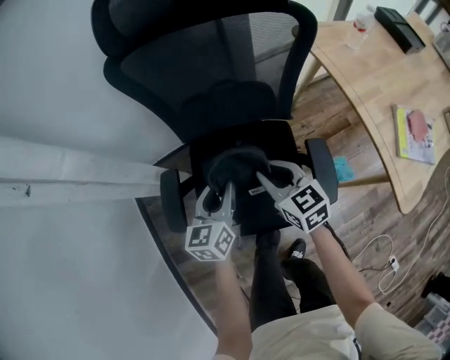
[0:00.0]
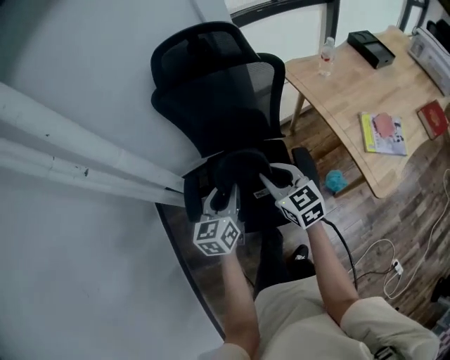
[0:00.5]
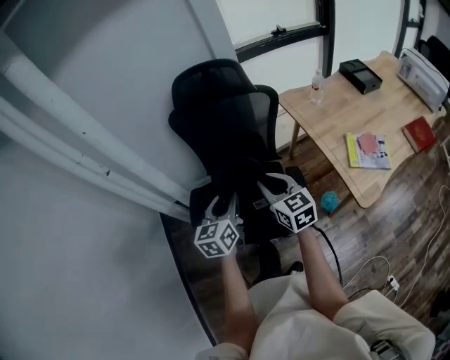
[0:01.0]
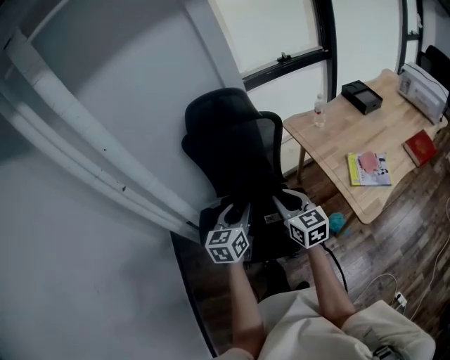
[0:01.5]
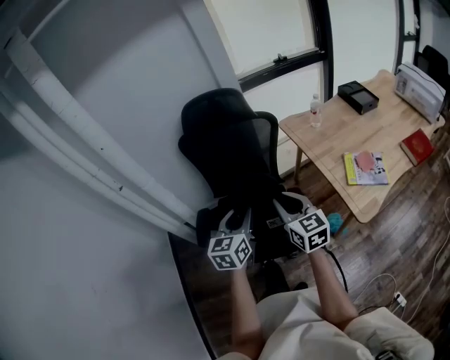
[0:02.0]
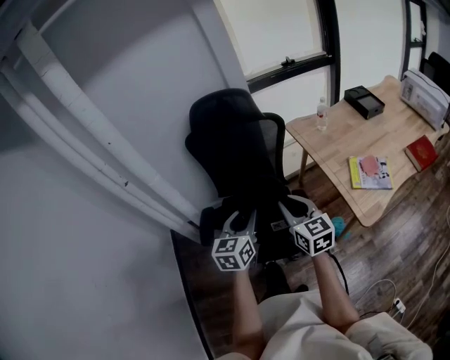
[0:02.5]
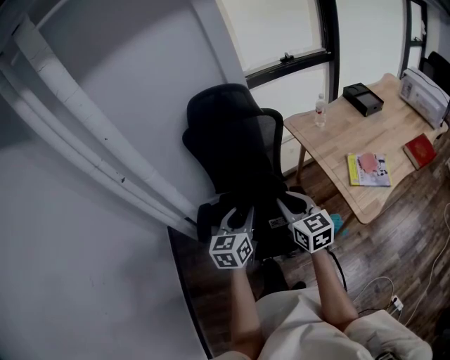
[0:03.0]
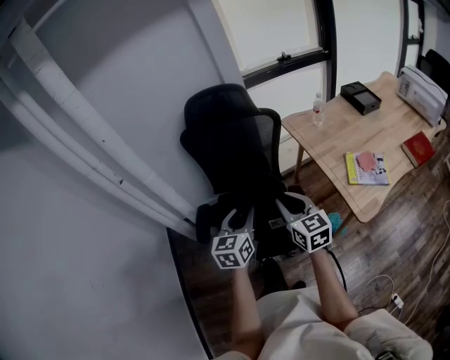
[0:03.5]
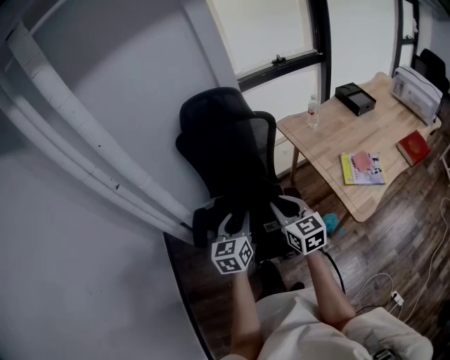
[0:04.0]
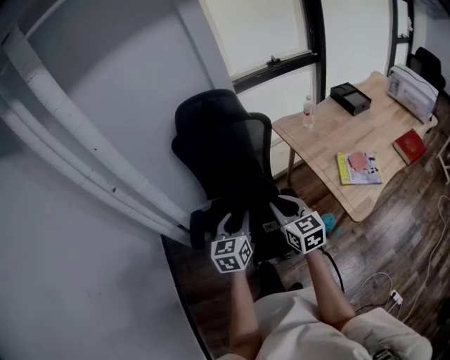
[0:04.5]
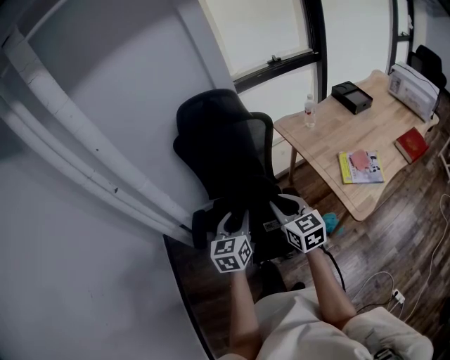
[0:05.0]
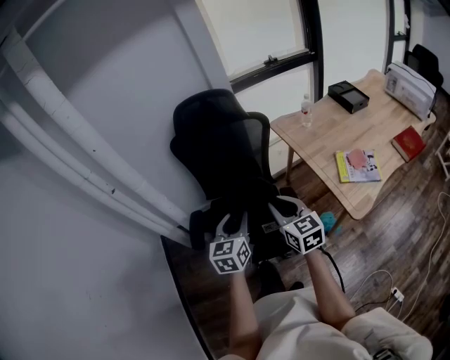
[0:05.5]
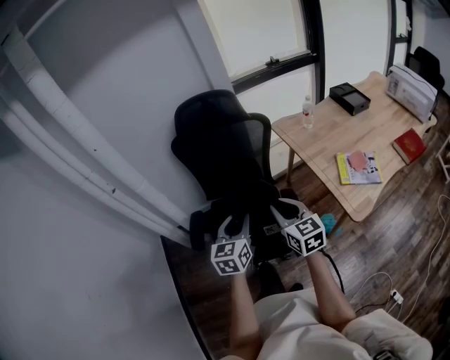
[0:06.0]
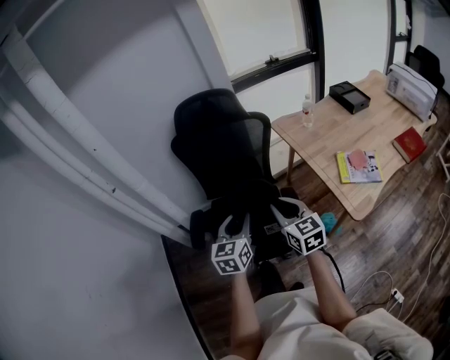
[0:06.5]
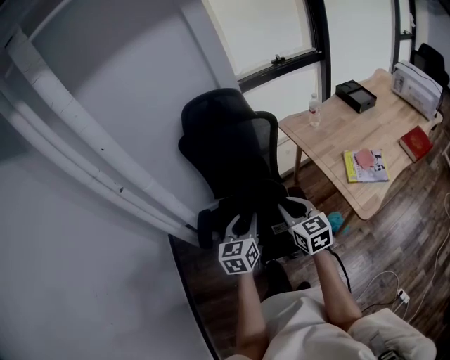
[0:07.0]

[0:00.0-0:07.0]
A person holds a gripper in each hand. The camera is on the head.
0:00.0 to 0:02.0: Both grippers travel together upward and backward, some 35 cm.
0:02.0 to 0:03.5: The grippers stay close to where they were, moving slightly.
0:03.5 to 0:05.0: Both grippers stay put.
0:05.0 to 0:07.0: There are only small adjustments of the grippers.

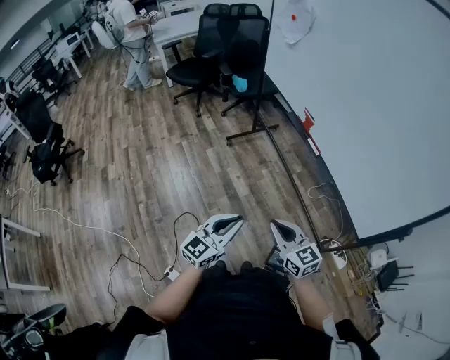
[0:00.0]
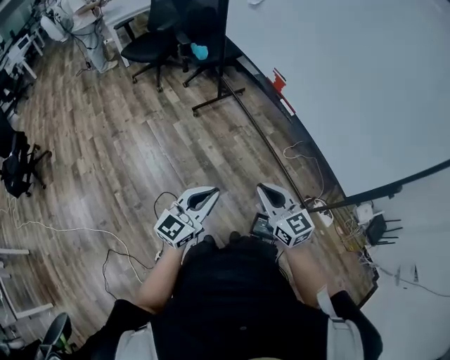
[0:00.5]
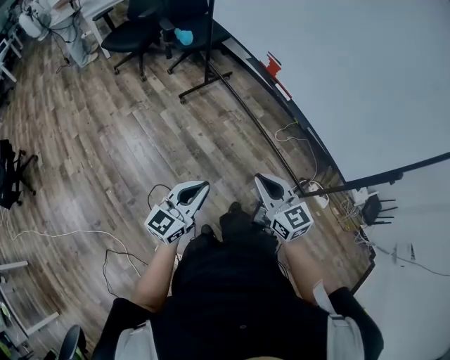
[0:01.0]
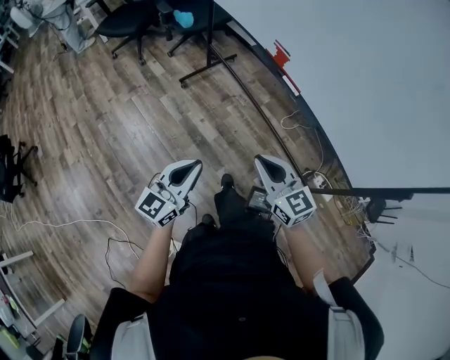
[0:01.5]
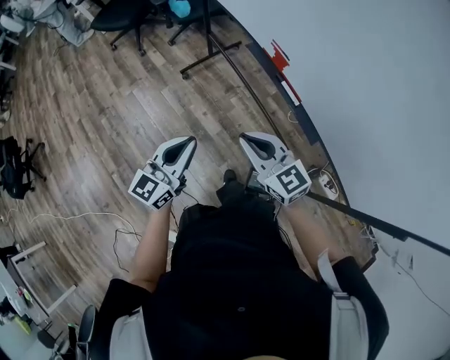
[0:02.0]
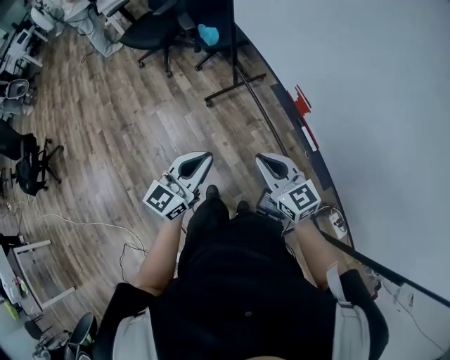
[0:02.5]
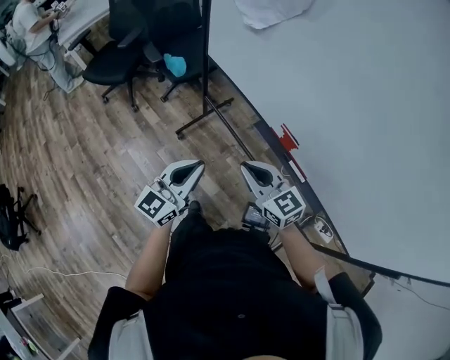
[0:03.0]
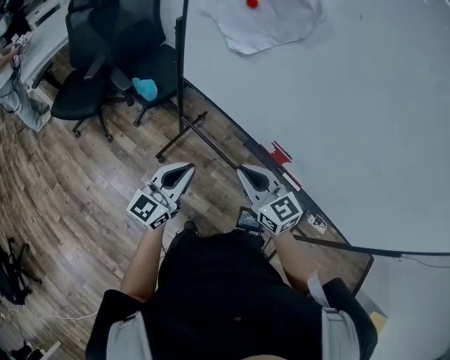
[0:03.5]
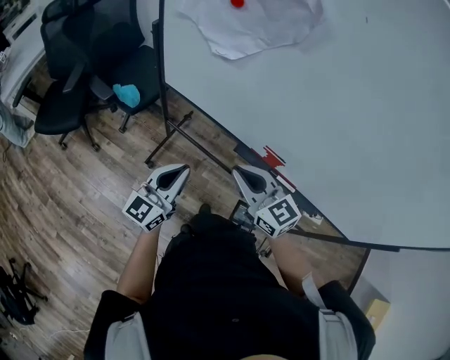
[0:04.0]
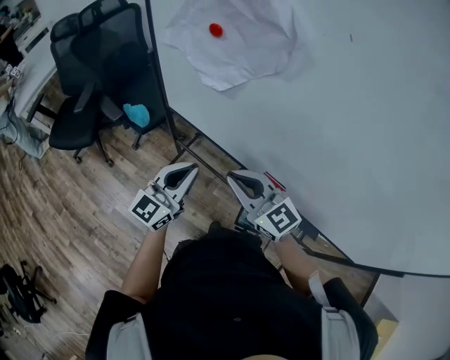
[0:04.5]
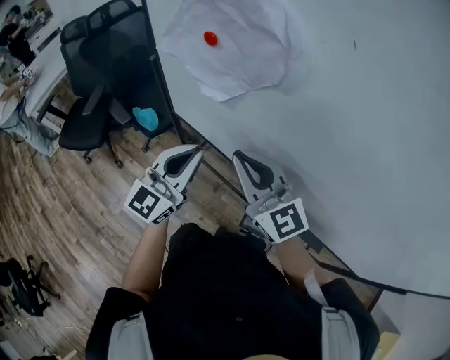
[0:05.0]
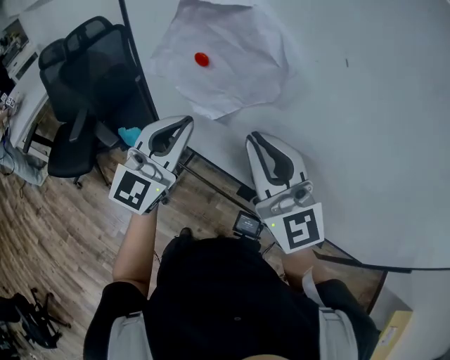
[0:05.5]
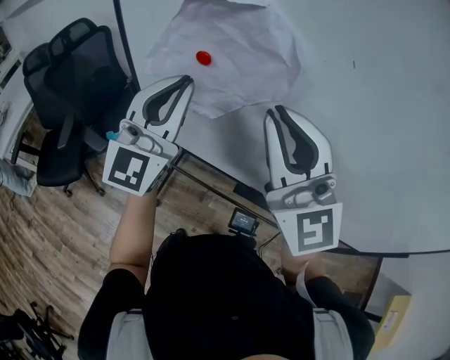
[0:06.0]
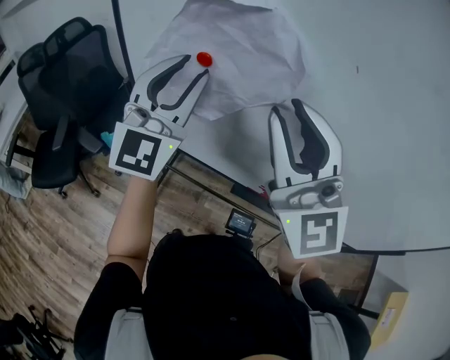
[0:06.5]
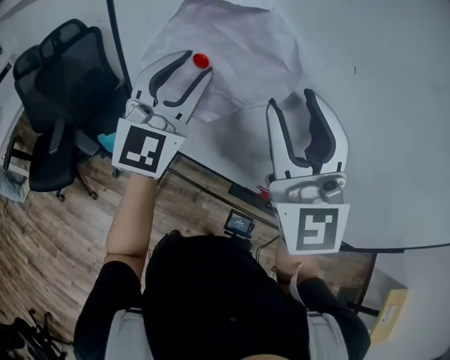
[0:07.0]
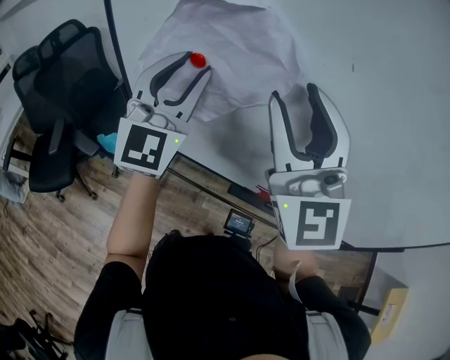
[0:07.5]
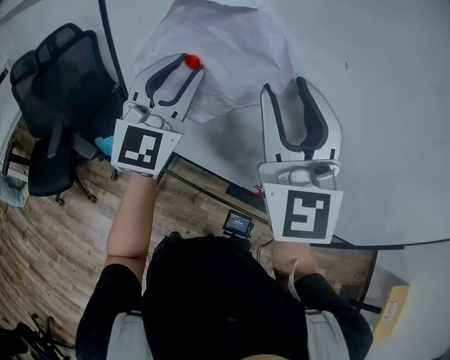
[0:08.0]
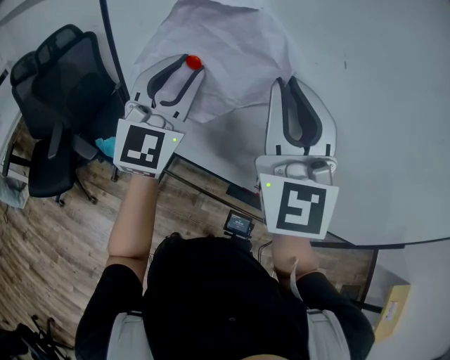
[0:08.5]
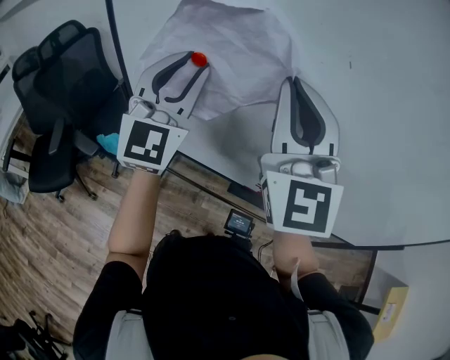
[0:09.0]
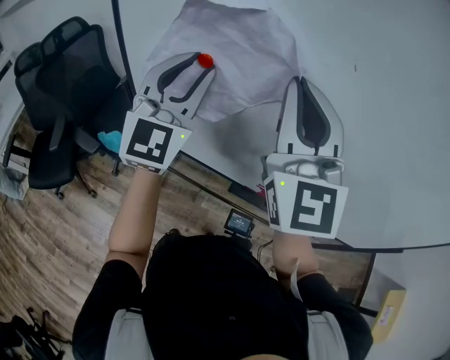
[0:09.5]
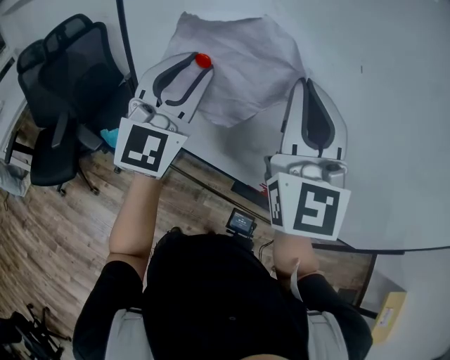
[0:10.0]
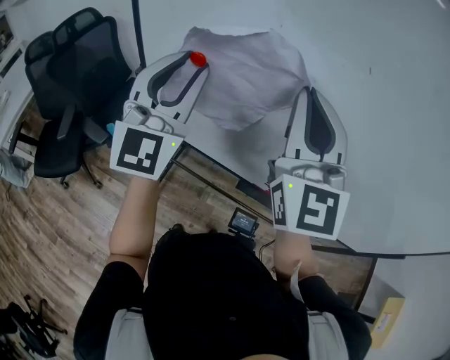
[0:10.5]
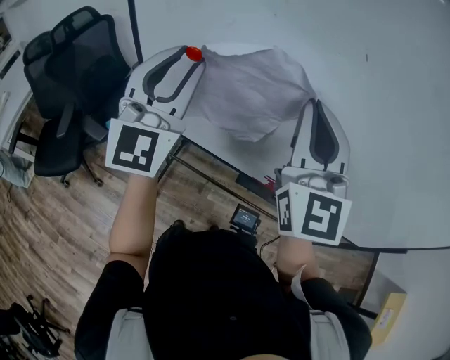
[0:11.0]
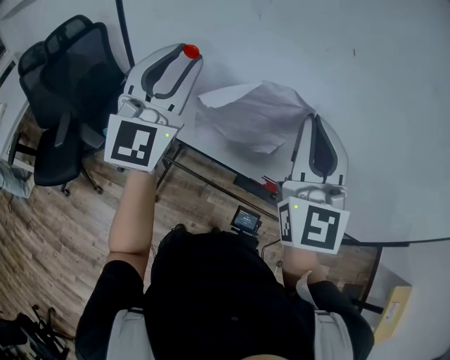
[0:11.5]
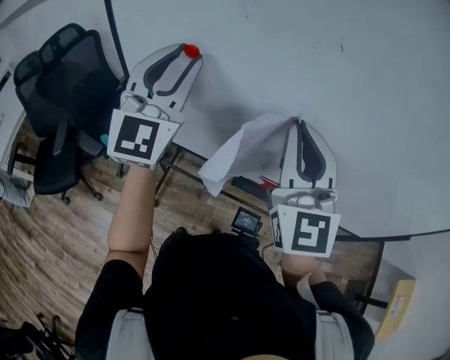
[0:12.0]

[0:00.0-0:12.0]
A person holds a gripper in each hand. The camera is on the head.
0:00.0 to 0:02.0: Both grippers move forward, some 30 cm.
0:02.0 to 0:04.0: The left gripper changes place by about 35 cm, and turns by roughly 30 degrees. The right gripper ends up about 30 cm from where it was, and changes its angle by approximately 30 degrees.
0:04.0 to 0:06.0: The right gripper goes roughly 30 cm upward, and tilts its fingers approximately 30 degrees upward. The left gripper moves upward and forward, about 35 cm, and turns by approximately 30 degrees.
0:06.0 to 0:08.0: The right gripper opens its fingers; the left gripper ends up roughly 5 cm from where it was, and opens its fingers.
0:08.0 to 0:10.0: The right gripper closes up.
0:10.0 to 0:12.0: The right gripper moves downward, some 5 cm.

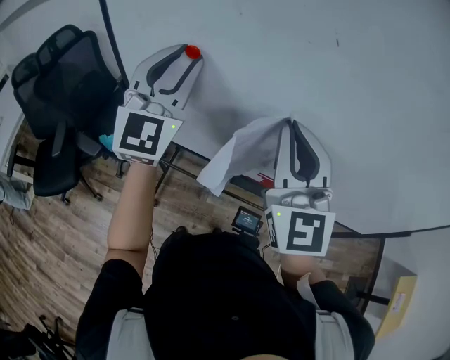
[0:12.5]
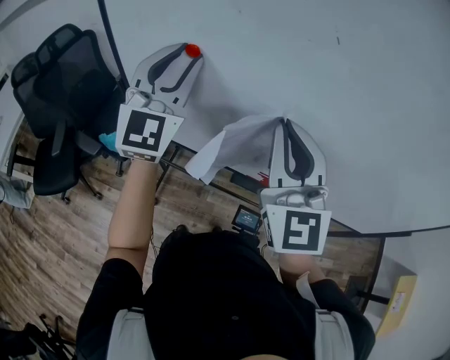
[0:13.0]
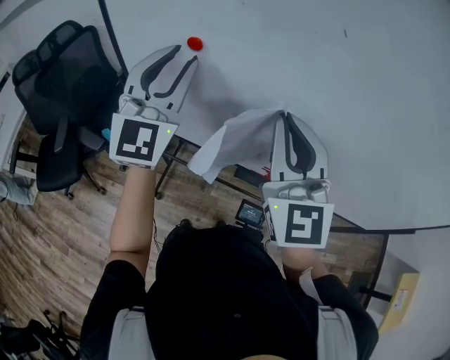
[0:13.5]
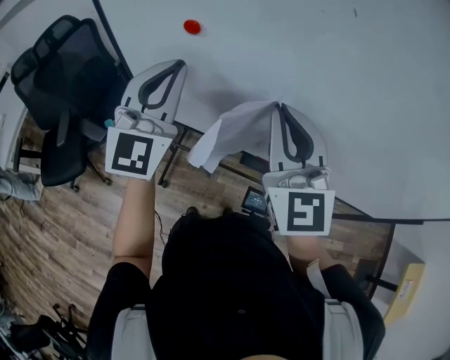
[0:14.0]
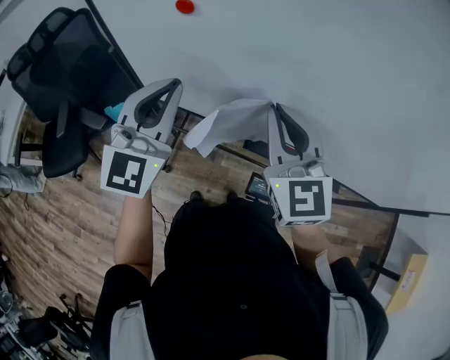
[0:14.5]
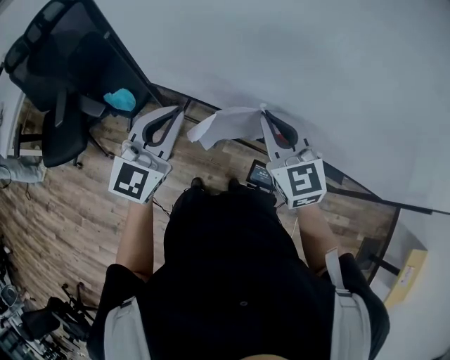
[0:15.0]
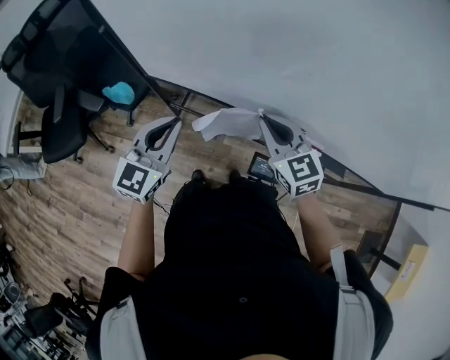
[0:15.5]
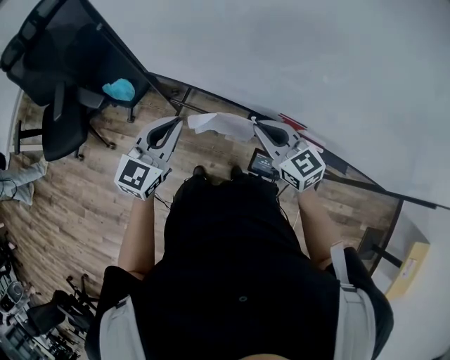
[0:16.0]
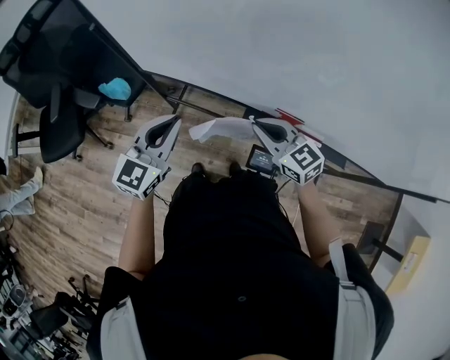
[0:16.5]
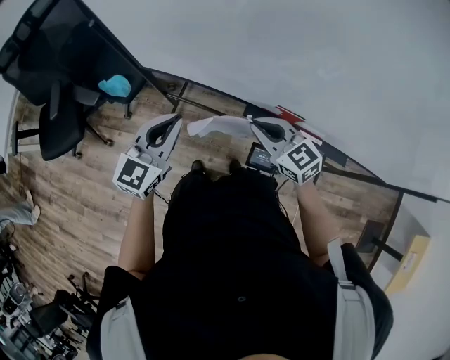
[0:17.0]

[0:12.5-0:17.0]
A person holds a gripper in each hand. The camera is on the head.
0:12.5 to 0:14.5: The left gripper is displaced downward and backward by about 10 cm, and closes up, while the right gripper goes roughly 10 cm downward.
0:14.5 to 0:17.0: The two grippers go roughly 20 cm downward. The left gripper changes its angle by roughly 30 degrees. The right gripper turns by approximately 40 degrees.

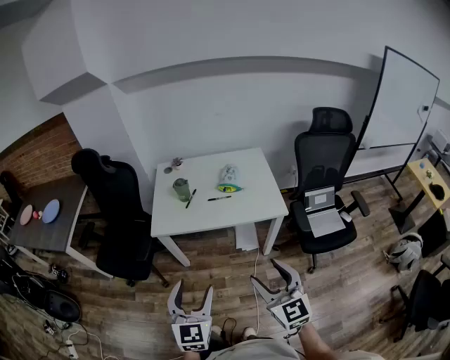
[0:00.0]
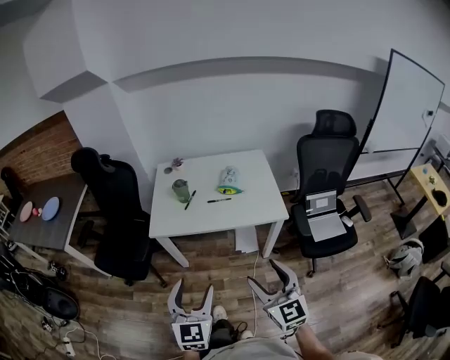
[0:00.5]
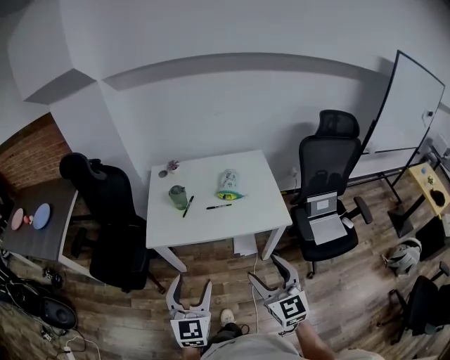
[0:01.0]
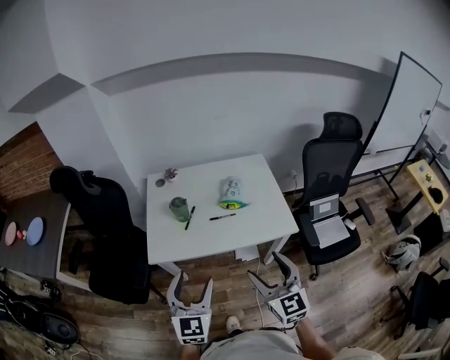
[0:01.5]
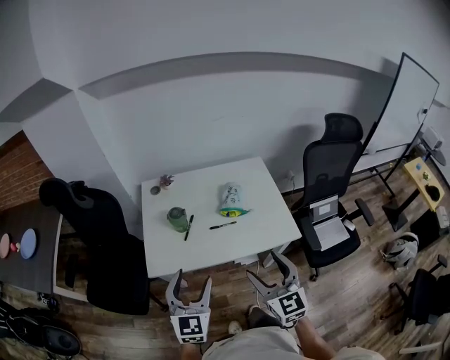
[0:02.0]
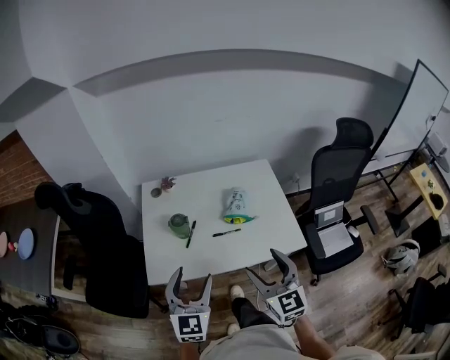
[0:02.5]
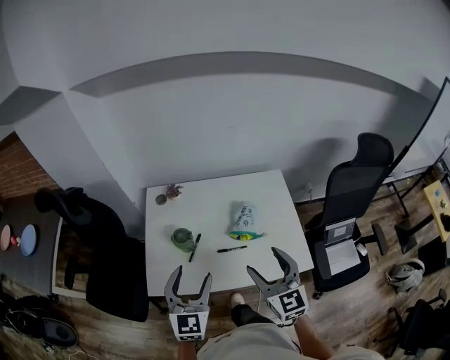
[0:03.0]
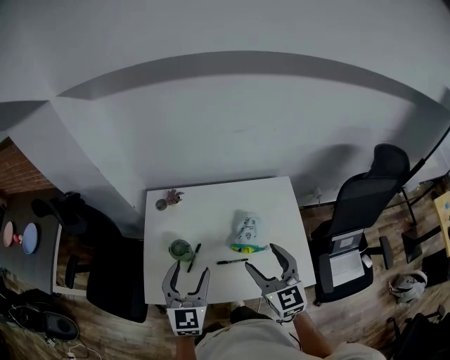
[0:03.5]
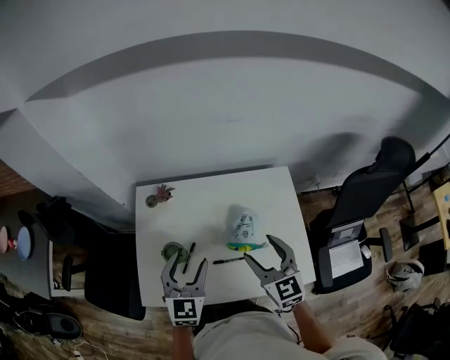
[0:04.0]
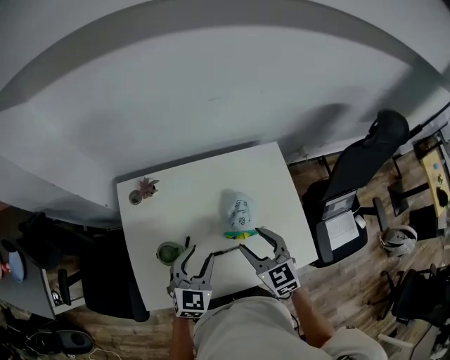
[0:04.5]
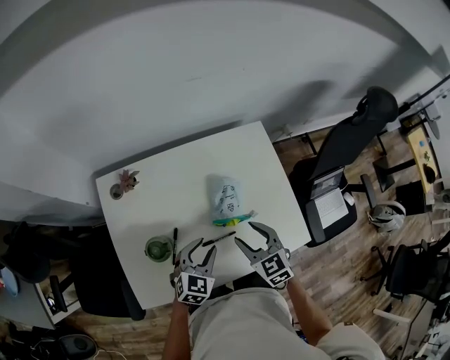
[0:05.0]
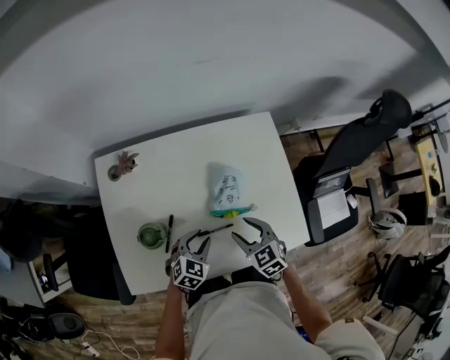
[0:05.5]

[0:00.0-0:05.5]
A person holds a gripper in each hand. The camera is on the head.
0:00.0 to 0:02.0: The two grippers go approximately 25 cm forward.
0:02.0 to 0:03.5: Both grippers move forward, approximately 25 cm.
0:03.5 to 0:05.5: Both grippers move downward, approximately 25 cm. The right gripper points its fingers some 30 degrees further downward; the left gripper tilts its fingers roughly 30 degrees downward, and closes up.
